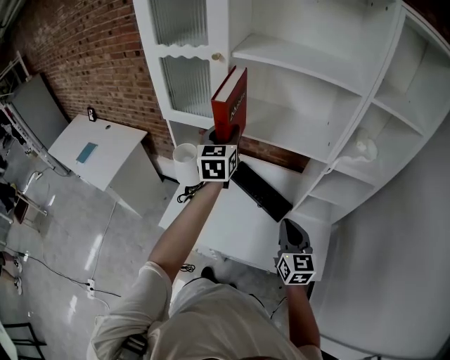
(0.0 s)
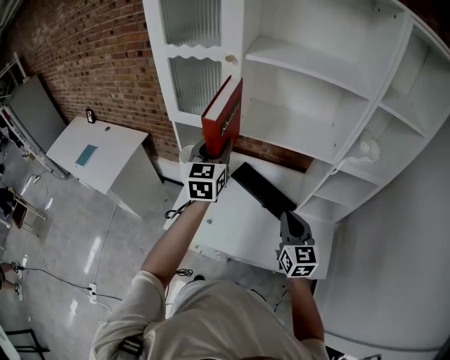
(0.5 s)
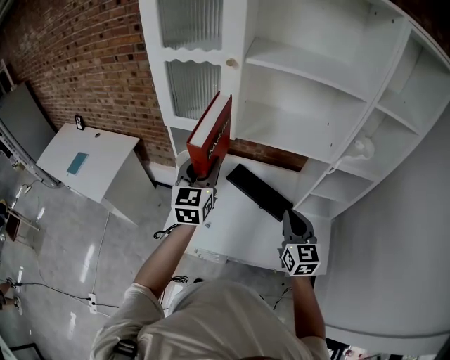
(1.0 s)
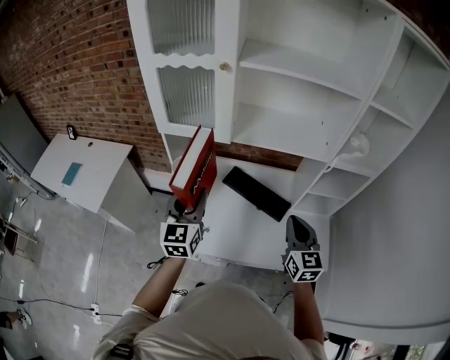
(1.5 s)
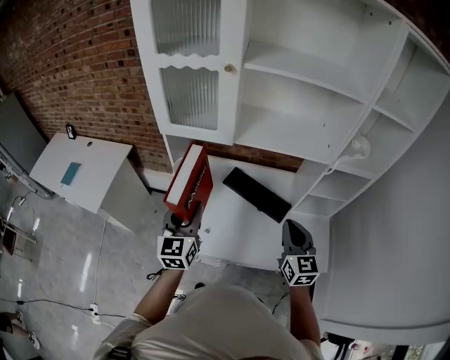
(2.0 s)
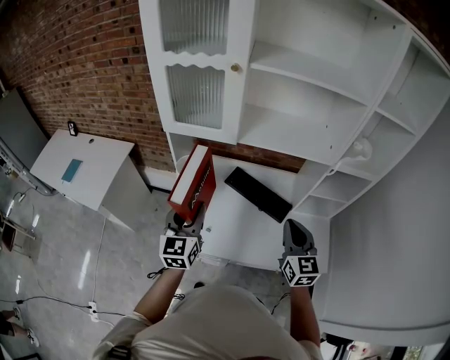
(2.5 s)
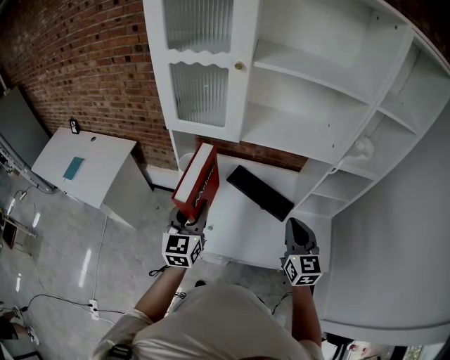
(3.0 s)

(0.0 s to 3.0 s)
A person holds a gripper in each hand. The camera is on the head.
0.0 s - 1.5 s: The left gripper shifts some 20 cm backward, to the left and downward, while the right gripper changes place by about 5 cm.
1.5 s - 3.0 s: There are only small adjustments of the grippers.

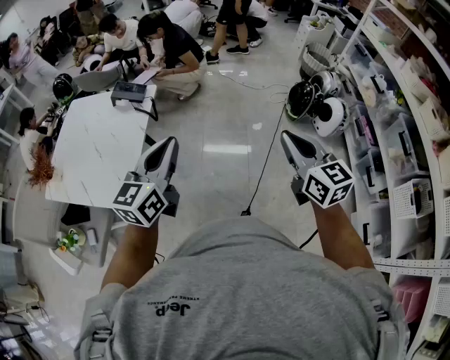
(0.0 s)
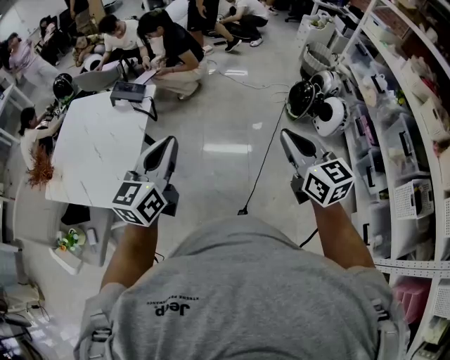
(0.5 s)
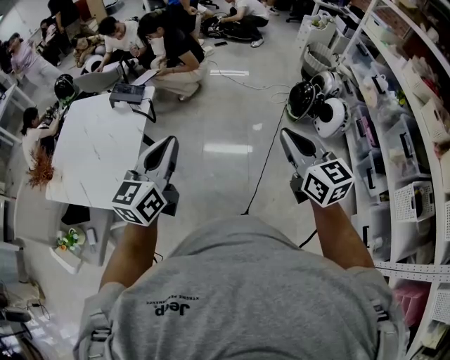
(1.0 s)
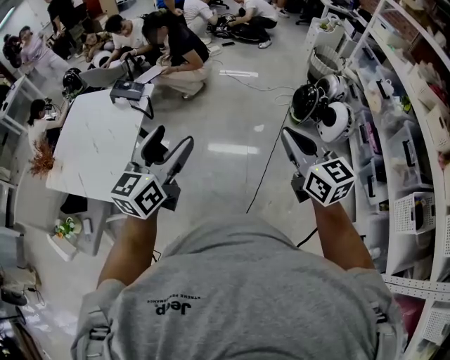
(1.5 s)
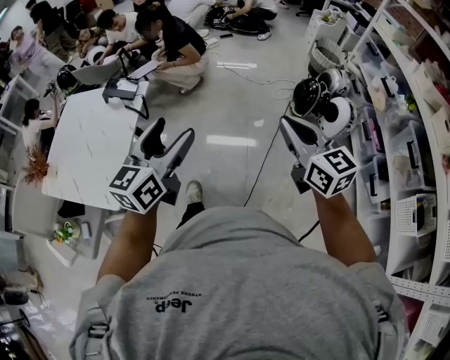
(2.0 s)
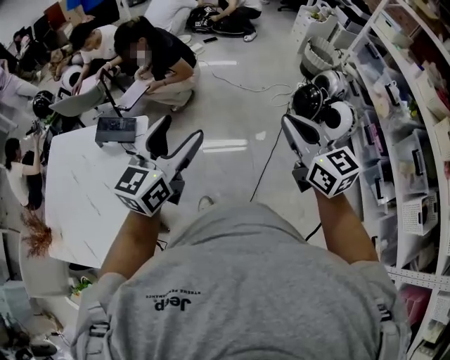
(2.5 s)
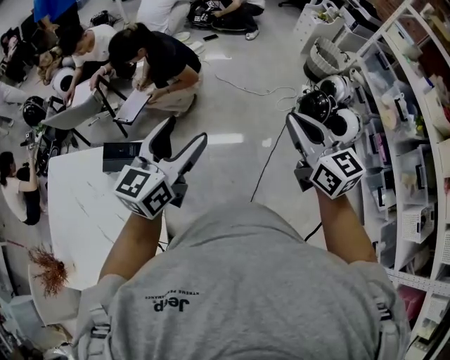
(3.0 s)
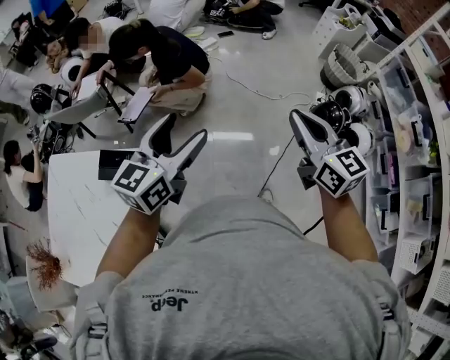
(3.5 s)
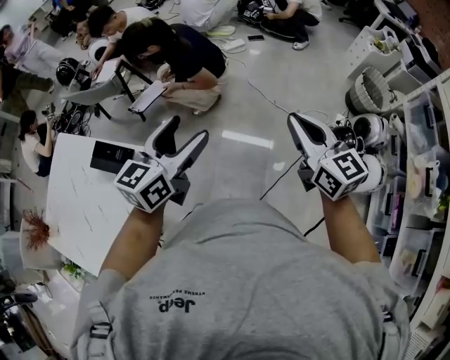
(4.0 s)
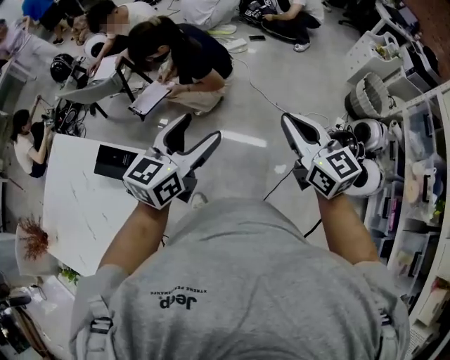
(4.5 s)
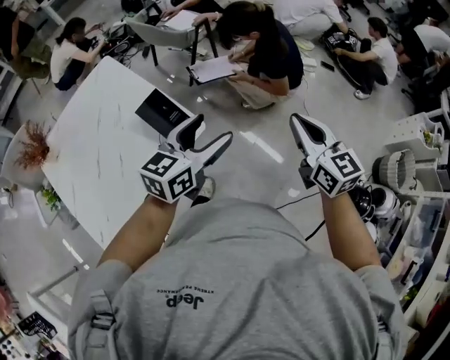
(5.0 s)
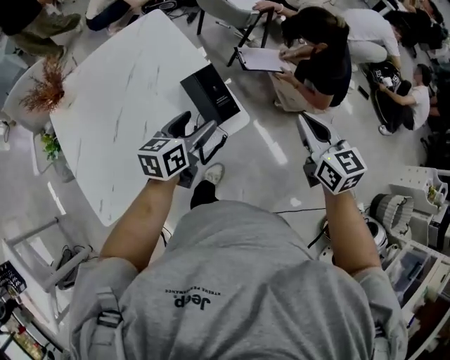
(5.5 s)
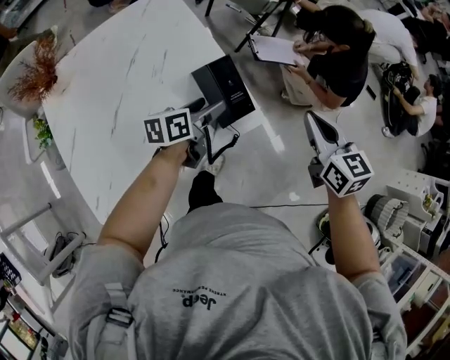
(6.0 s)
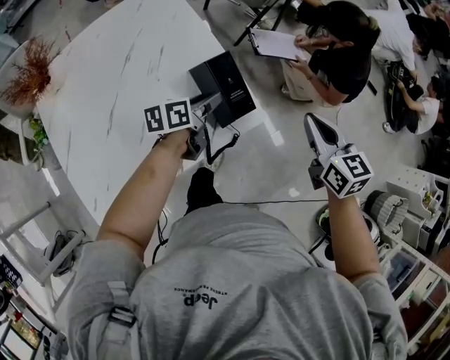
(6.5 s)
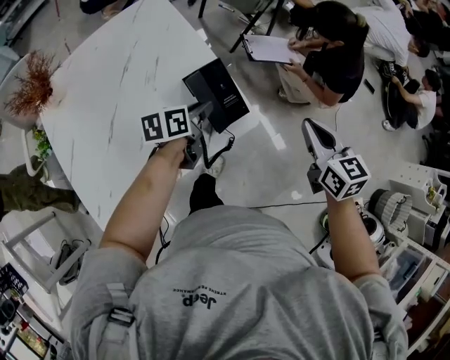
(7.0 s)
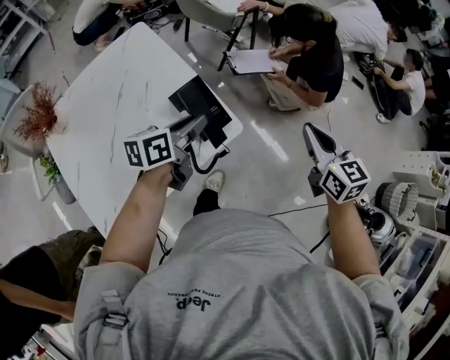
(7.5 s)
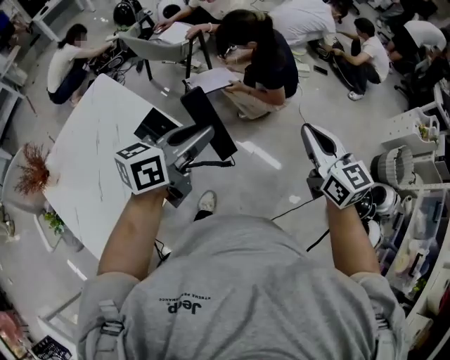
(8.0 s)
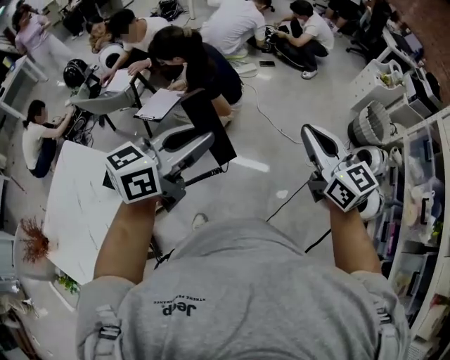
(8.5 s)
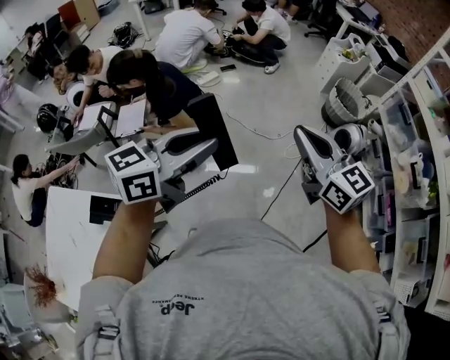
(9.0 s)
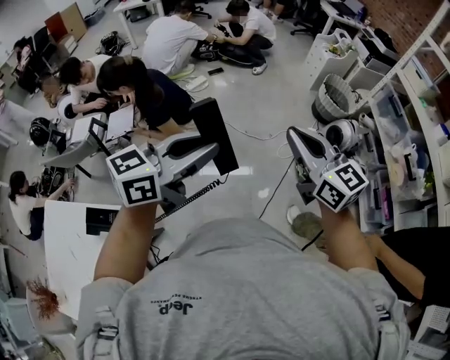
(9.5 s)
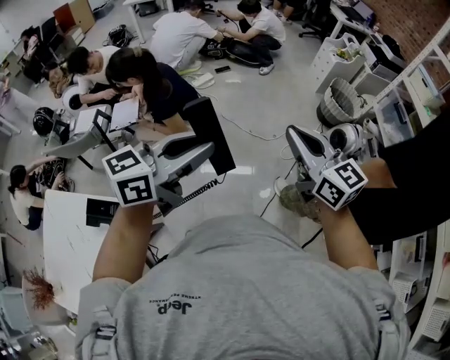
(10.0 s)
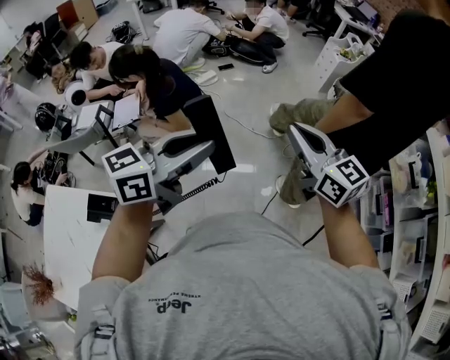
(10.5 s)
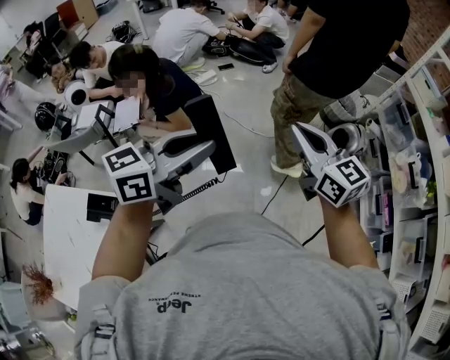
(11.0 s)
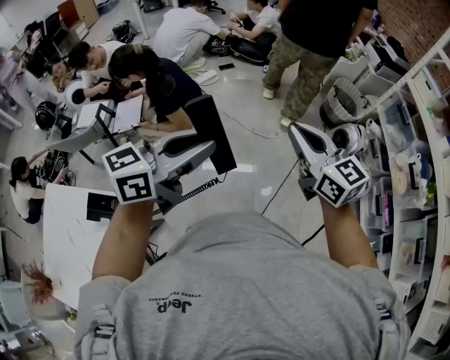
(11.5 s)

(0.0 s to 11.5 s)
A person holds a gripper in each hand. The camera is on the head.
0.0 s - 2.0 s: The right gripper heads forward and to the right, covering roughly 10 cm, while the left gripper shifts some 10 cm to the right and forward, and opens.
2.0 s - 4.0 s: The two grippers travel together, forward, some 50 cm.
4.0 s - 6.0 s: The pair of grippers is taken about 40 cm. The right gripper rotates approximately 40 degrees; the left gripper rotates some 60 degrees.
6.0 s - 7.5 s: The right gripper shifts about 5 cm to the right. The left gripper moves upward, approximately 10 cm, and closes up.
7.5 s - 9.5 s: Both grippers are carried some 40 cm. The left gripper rotates approximately 80 degrees, while the right gripper swivels about 40 degrees.
9.5 s - 11.5 s: The grippers move only a little.

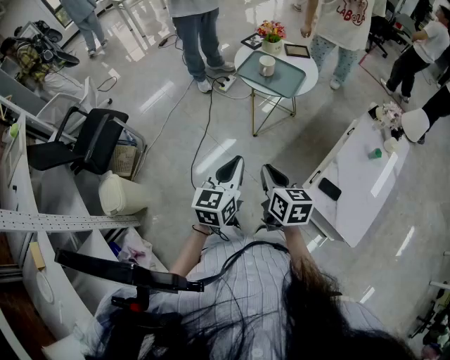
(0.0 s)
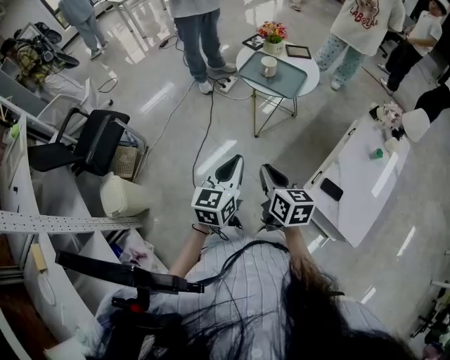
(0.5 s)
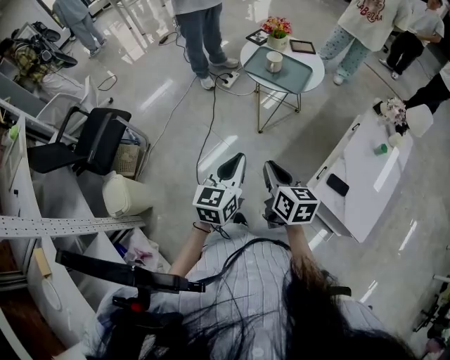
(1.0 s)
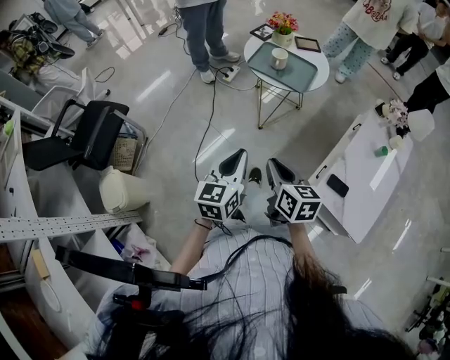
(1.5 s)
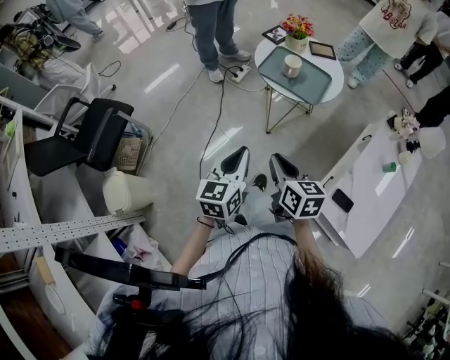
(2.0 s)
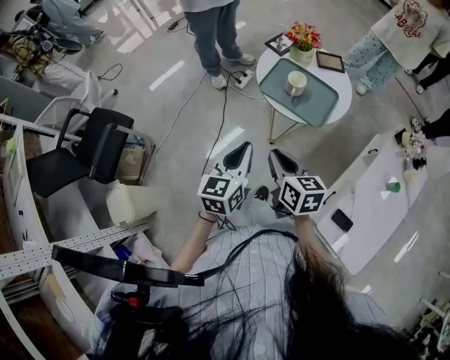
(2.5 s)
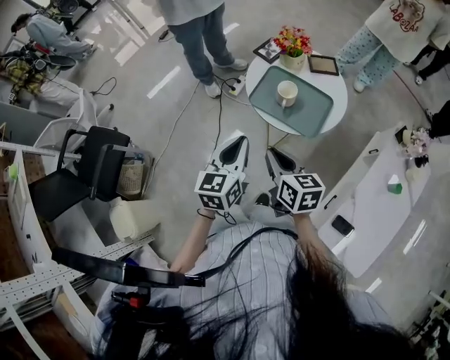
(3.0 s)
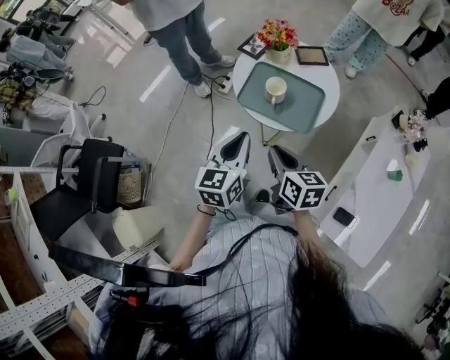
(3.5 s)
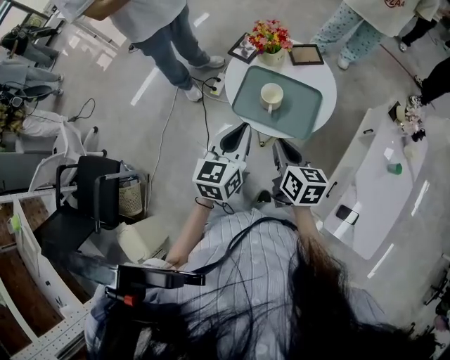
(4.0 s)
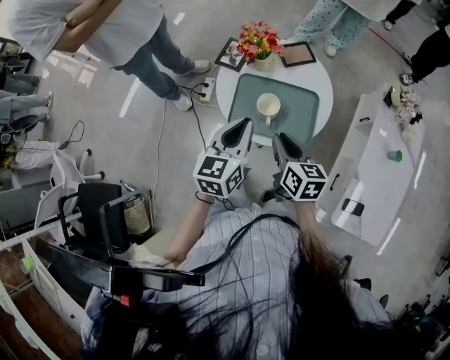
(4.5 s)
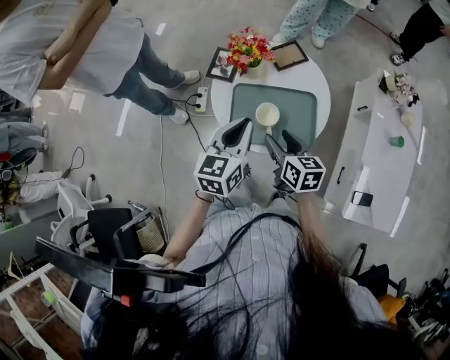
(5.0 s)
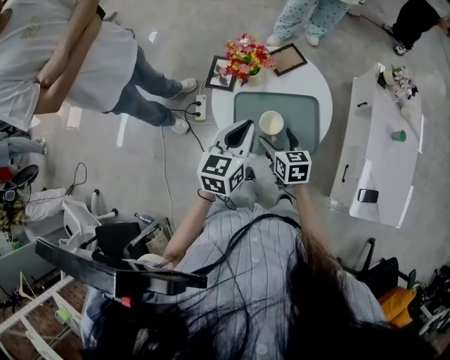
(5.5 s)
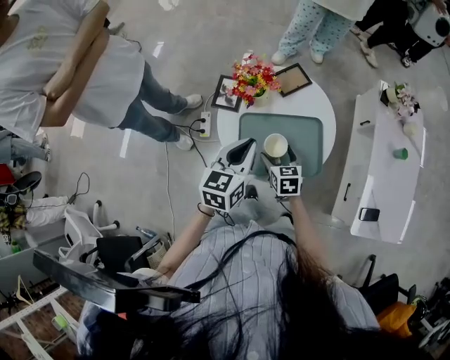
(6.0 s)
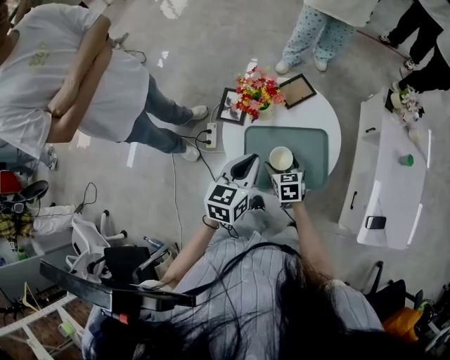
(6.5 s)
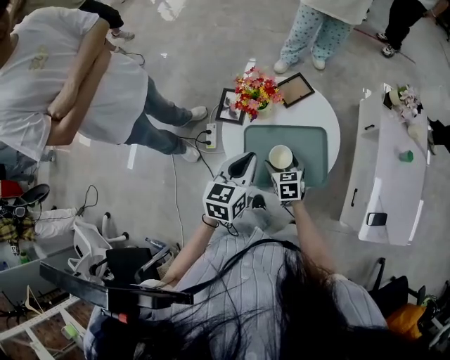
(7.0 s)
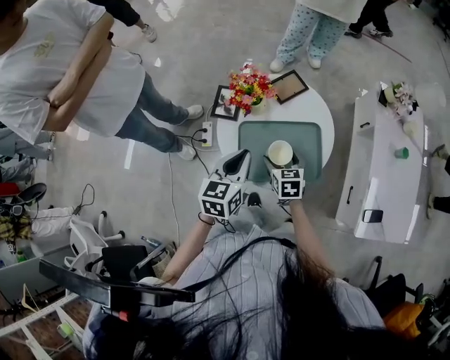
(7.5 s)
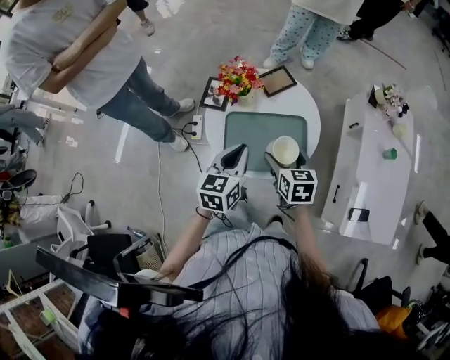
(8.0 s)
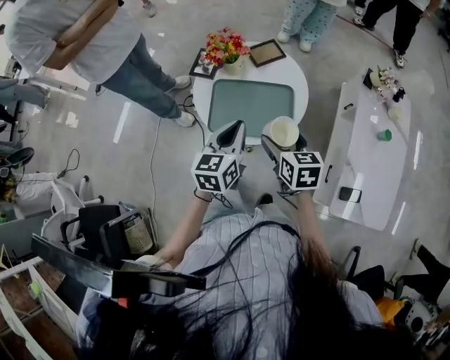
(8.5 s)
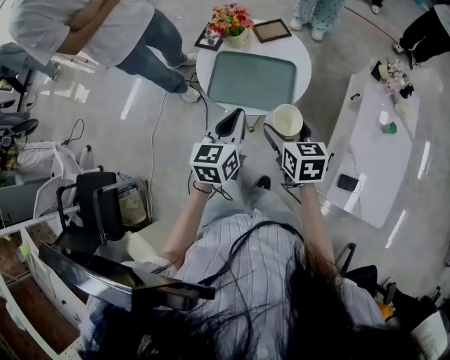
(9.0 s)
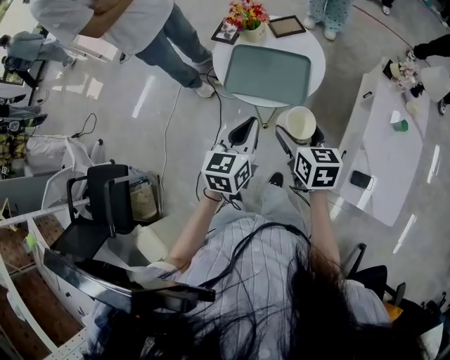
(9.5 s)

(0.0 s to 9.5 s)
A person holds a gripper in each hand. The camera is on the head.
0.0 s - 2.0 s: The grippers both shift forward and to the left by some 15 cm.
2.0 s - 4.0 s: Both grippers move forward, about 30 cm.
4.0 s - 5.5 s: The left gripper is displaced forward by approximately 15 cm, and turns by about 20 degrees, while the right gripper moves forward and downward, approximately 20 cm, and opens its fingers.
7.5 s - 9.5 s: The right gripper travels backward, upward and to the right by some 30 cm. The left gripper shifts some 25 cm backward and to the right.

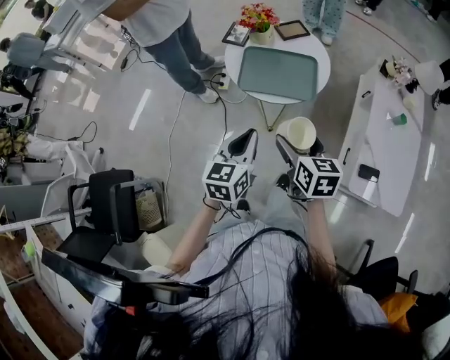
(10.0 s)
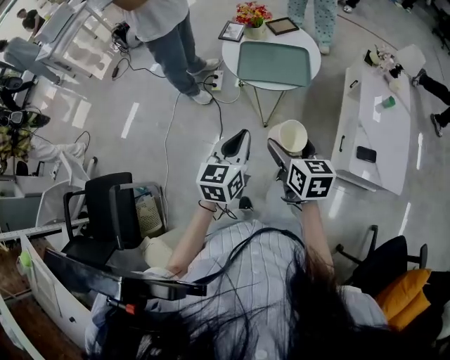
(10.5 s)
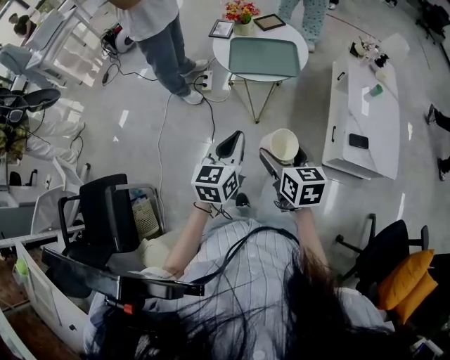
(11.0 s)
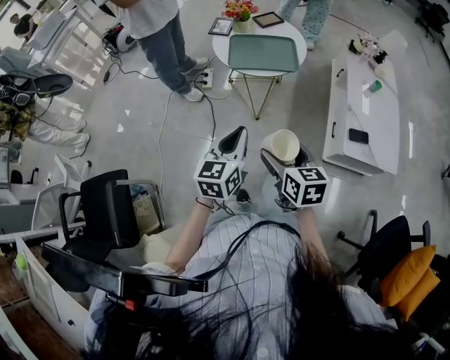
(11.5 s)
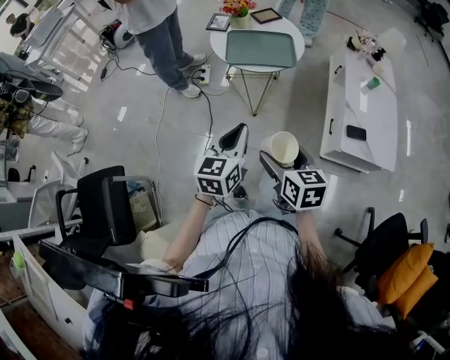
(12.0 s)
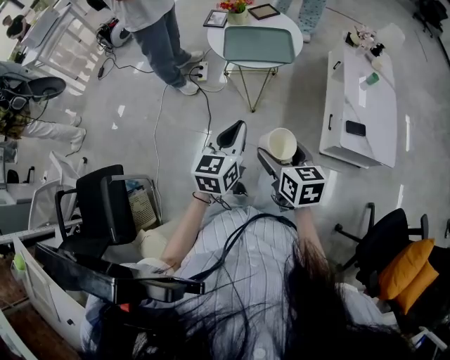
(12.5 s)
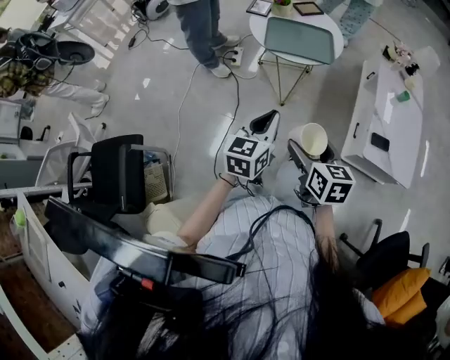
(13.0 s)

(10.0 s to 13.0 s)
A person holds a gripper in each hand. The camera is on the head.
10.0 s - 11.5 s: Both grippers move backward, about 20 cm.
11.5 s - 13.0 s: The grippers move only a little.
